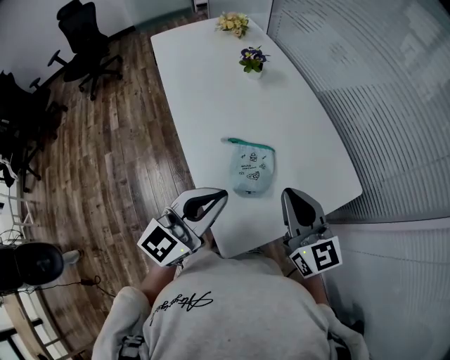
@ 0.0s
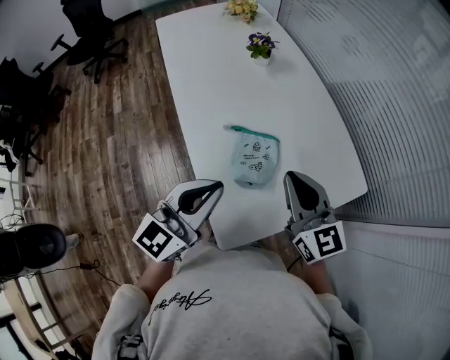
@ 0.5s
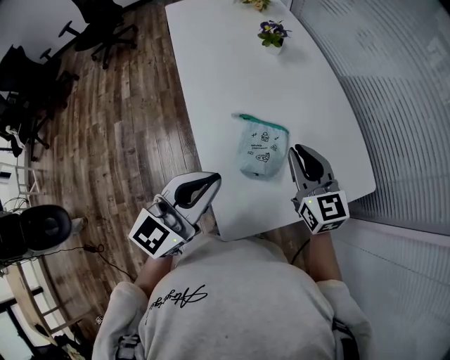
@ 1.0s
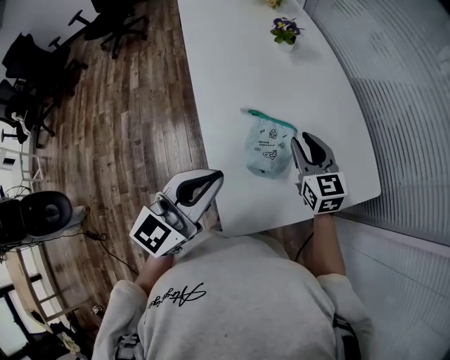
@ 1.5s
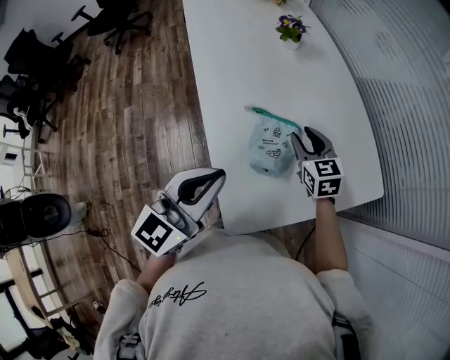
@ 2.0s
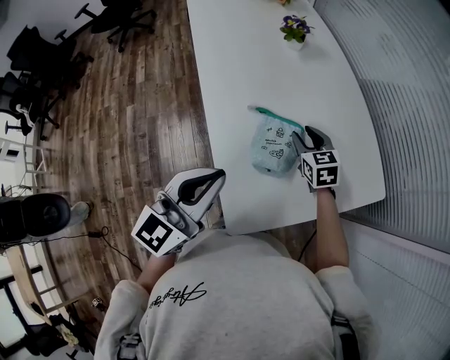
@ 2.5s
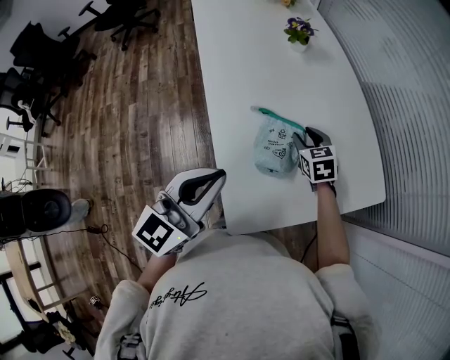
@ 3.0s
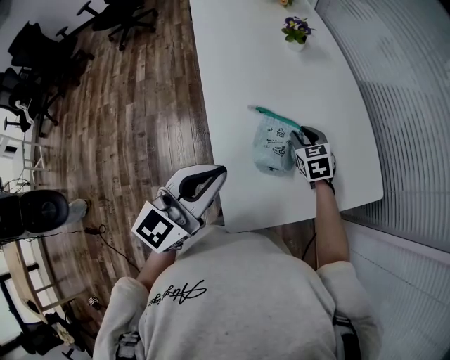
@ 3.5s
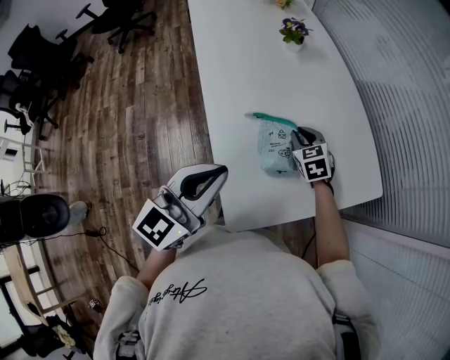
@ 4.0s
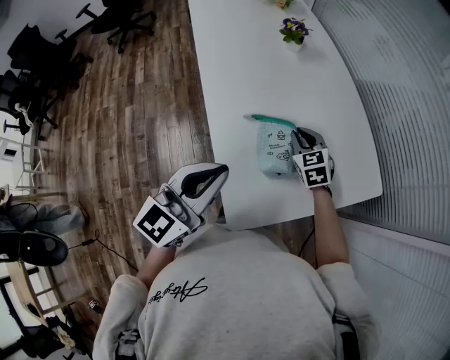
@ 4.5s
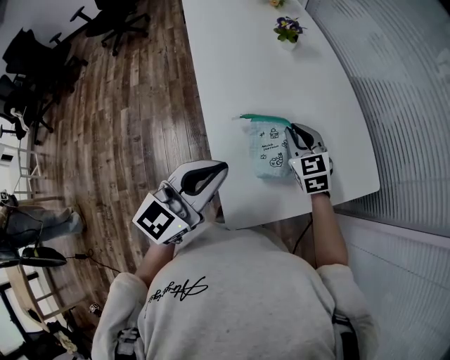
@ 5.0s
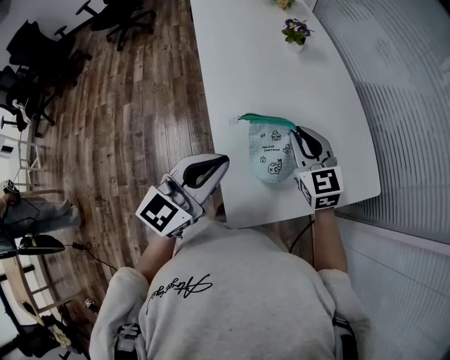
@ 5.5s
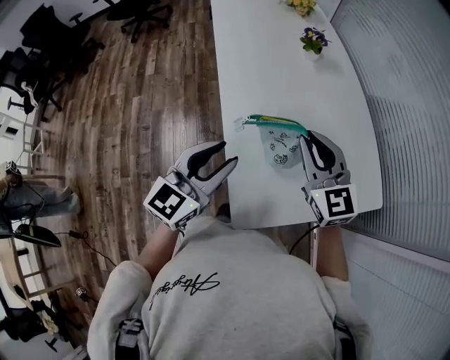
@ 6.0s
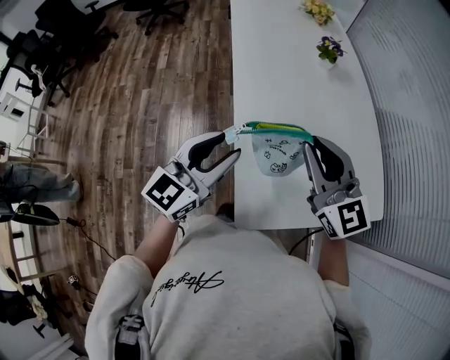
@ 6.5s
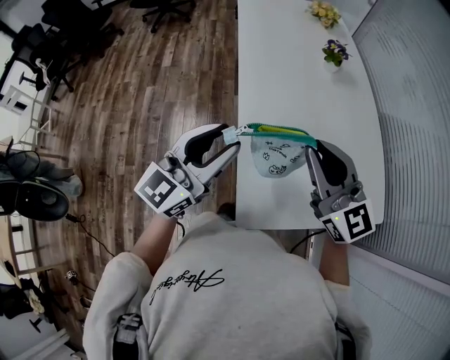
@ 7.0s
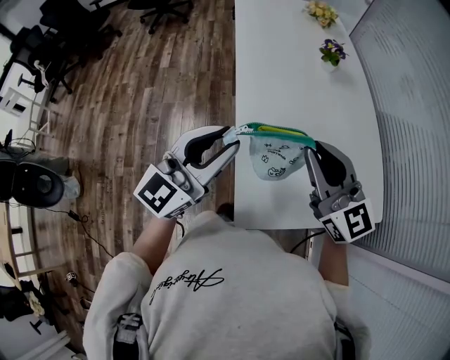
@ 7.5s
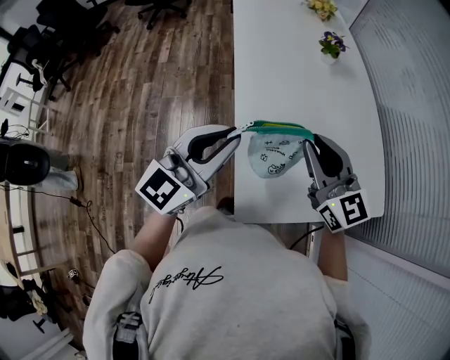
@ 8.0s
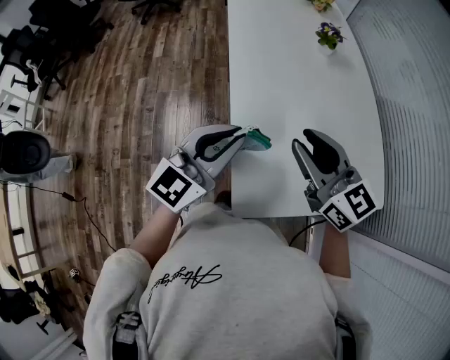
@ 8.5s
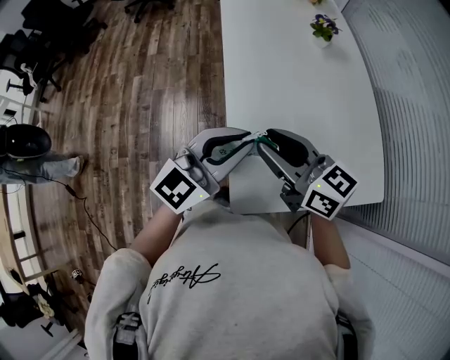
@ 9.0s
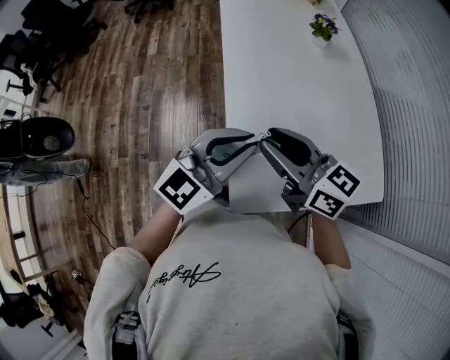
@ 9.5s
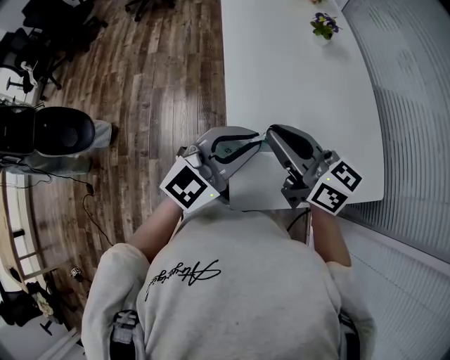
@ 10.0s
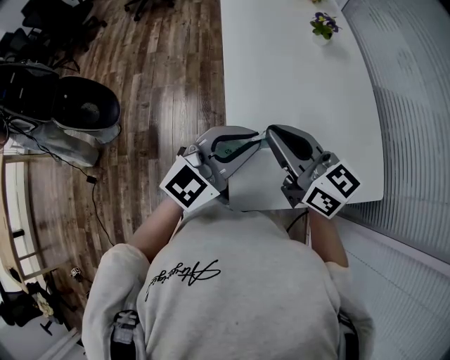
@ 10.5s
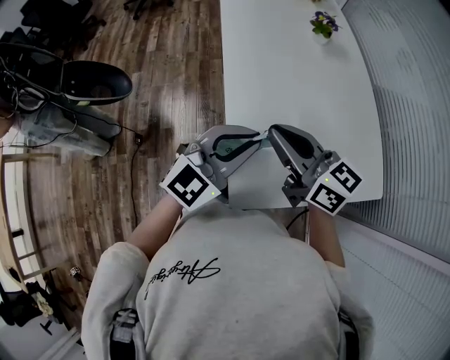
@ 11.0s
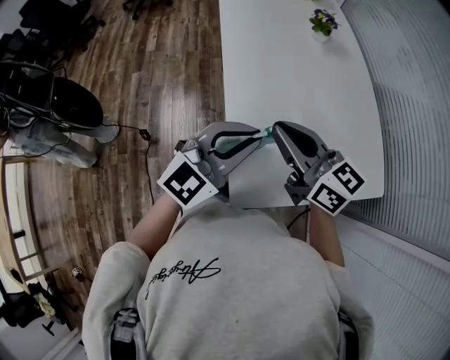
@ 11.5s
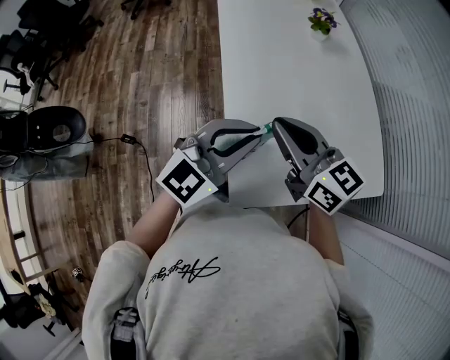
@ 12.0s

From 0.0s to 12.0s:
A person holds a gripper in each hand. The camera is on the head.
From 0.0s to 2.0s: The right gripper heads downward and forward, covering about 20 cm, turns by about 20 degrees, and opens.
From 2.0s to 4.0s: The right gripper shifts some 5 cm downward.
From 4.0s to 6.0s: The left gripper ends up approximately 5 cm from where it was, and opens its fingers. The right gripper goes approximately 20 cm upward and backward, and tilts its fingers some 30 degrees upward.
From 6.0s to 8.0s: The left gripper shifts roughly 5 cm upward, and closes its fingers.
From 8.0s to 10.0s: The right gripper goes roughly 5 cm to the left, and swivels roughly 30 degrees; the left gripper heads to the right, covering some 5 cm.
From 10.0s to 12.0s: The grippers make only small movements.

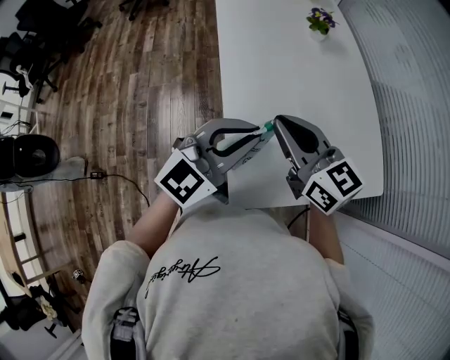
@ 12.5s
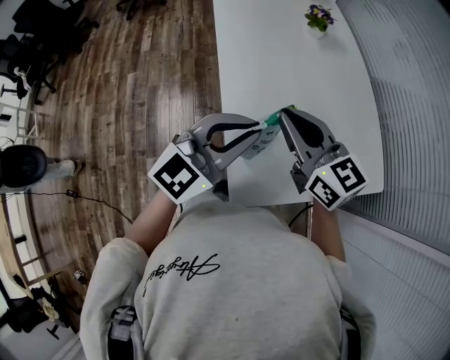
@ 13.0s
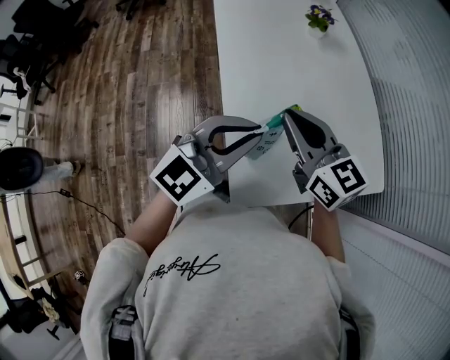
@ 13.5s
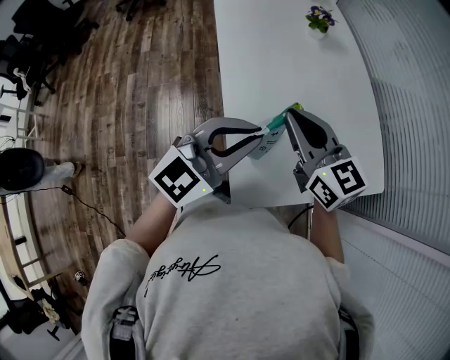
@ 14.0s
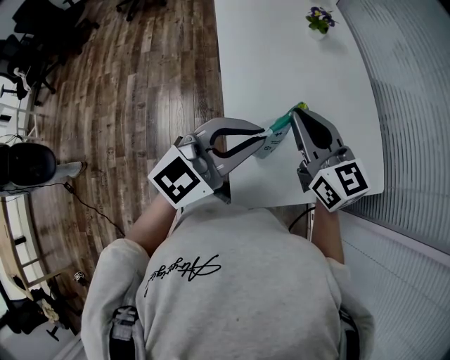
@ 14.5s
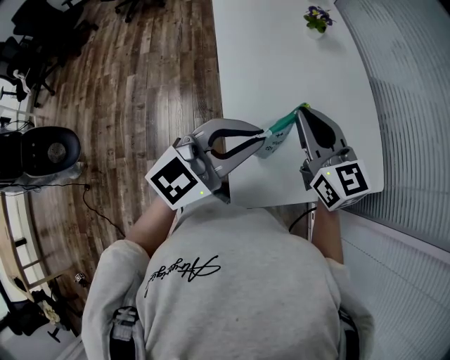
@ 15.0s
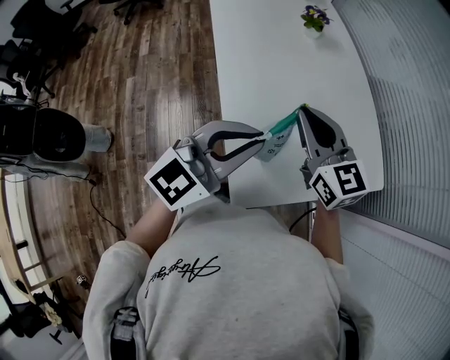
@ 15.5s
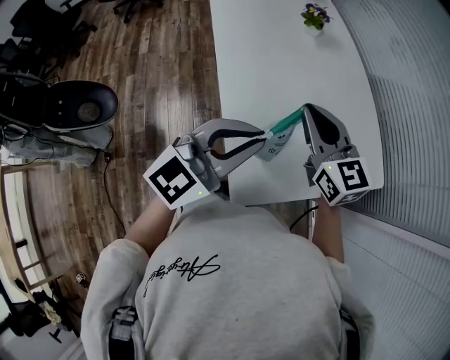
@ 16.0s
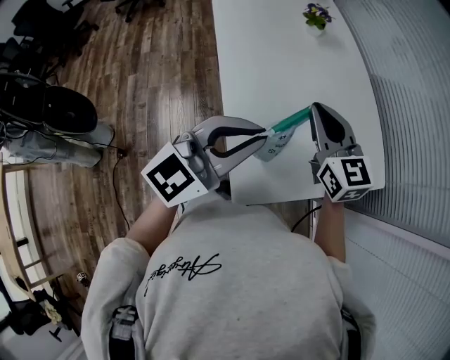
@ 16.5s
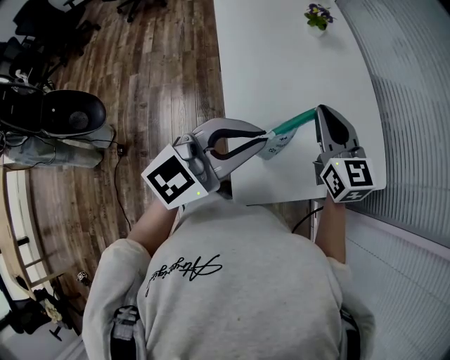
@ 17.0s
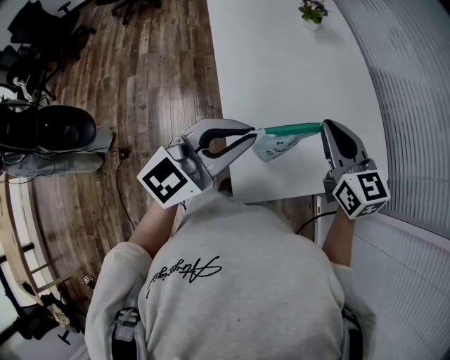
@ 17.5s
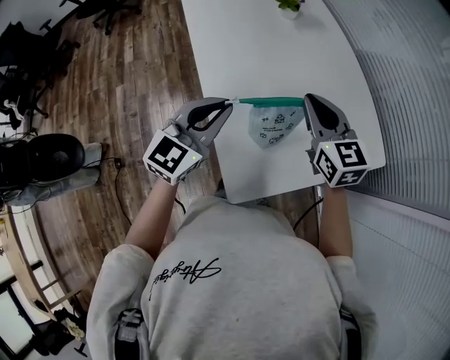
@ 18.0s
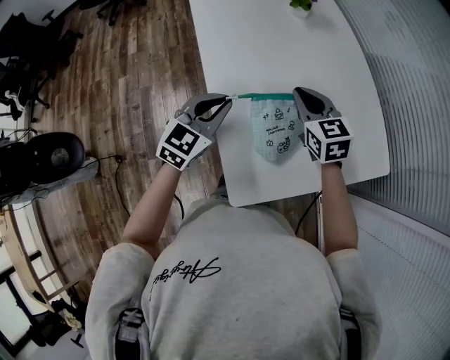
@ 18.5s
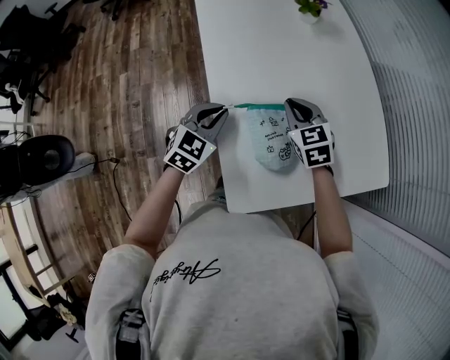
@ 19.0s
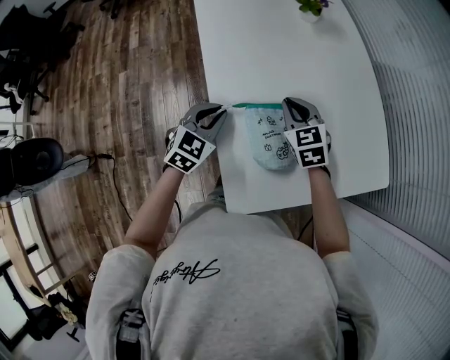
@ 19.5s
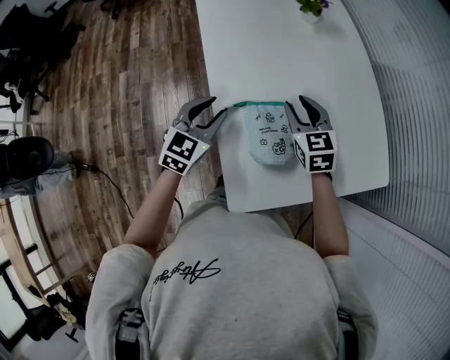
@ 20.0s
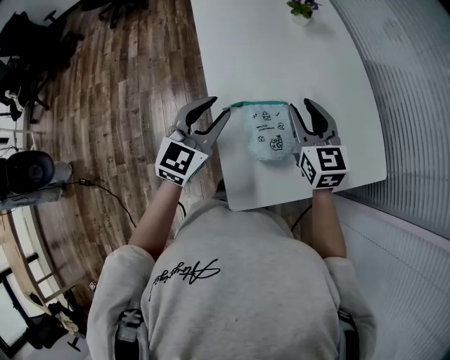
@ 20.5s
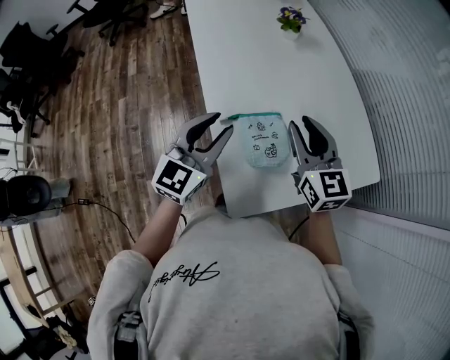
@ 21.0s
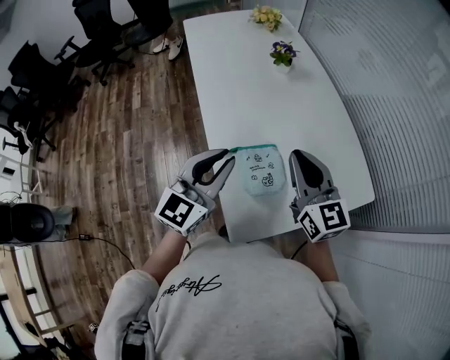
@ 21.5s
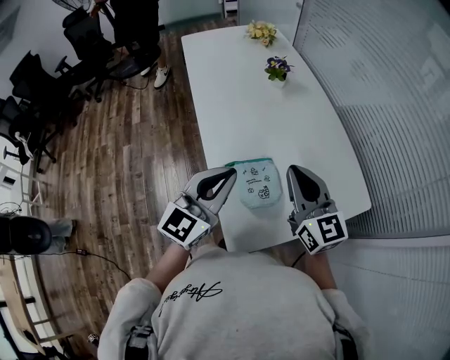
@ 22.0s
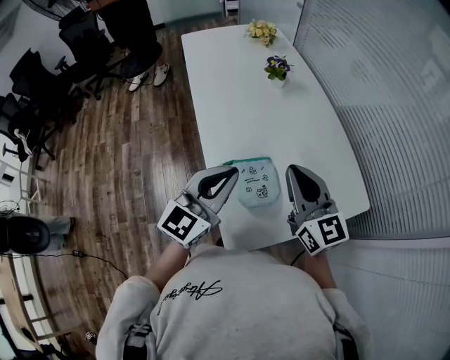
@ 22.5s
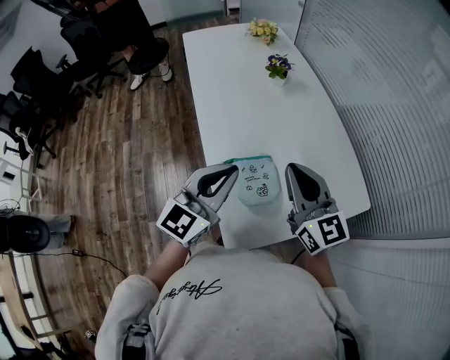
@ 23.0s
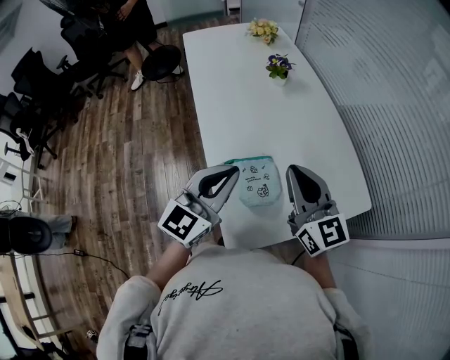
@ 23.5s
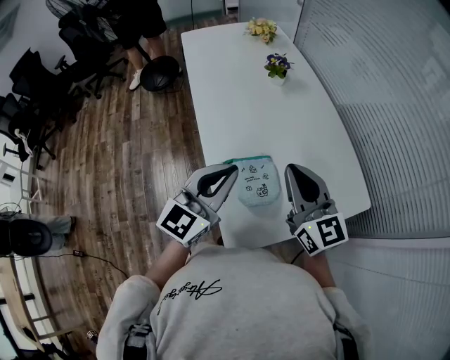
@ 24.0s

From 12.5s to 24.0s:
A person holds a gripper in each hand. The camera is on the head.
From 12.5s to 14.5s: The grippers stay close to where they were, moving slightly.
From 14.5s to 16.5s: The right gripper changes place by roughly 5 cm.
From 16.5s to 18.5s: Both grippers travel together downward and forward, roughly 15 cm. The left gripper swivels about 30 degrees.
From 18.5s to 20.0s: The left gripper moves about 5 cm, and opens up. The right gripper opens.
From 20.0s to 22.0s: Both grippers travel together upward and backward, about 20 cm. The right gripper changes its angle by about 30 degrees, and closes. Meanwhile the left gripper turns by roughly 30 degrees, and closes.
From 22.0s to 24.0s: The two grippers keep their place.

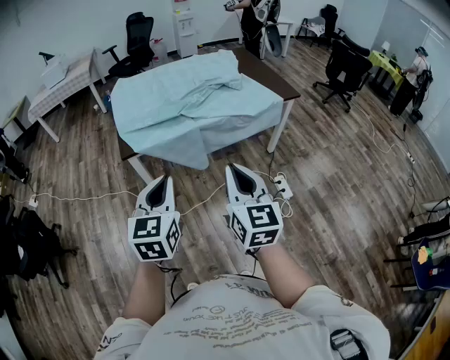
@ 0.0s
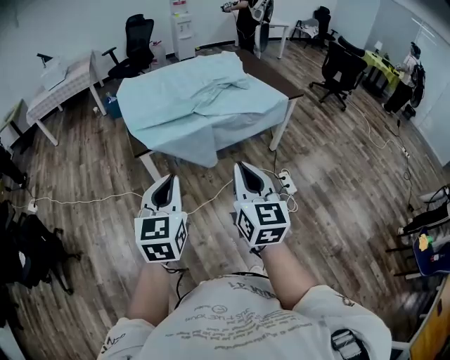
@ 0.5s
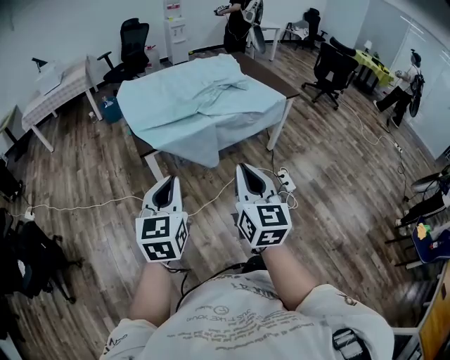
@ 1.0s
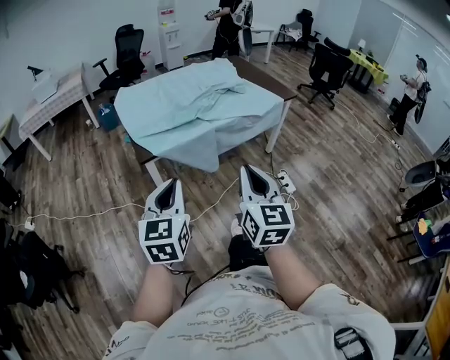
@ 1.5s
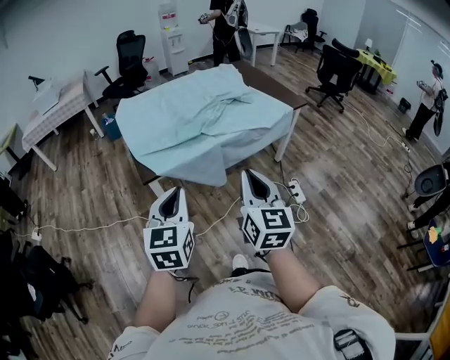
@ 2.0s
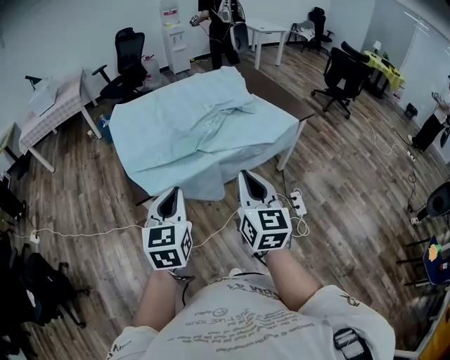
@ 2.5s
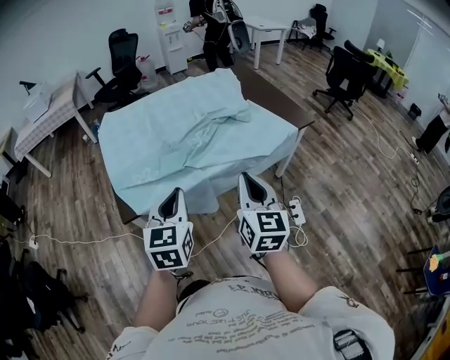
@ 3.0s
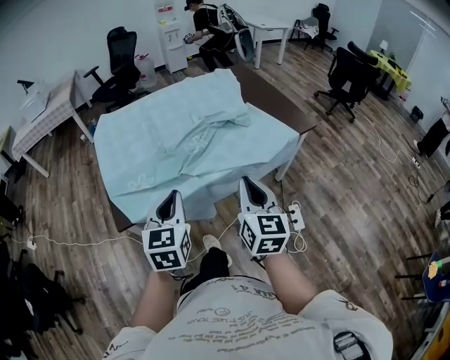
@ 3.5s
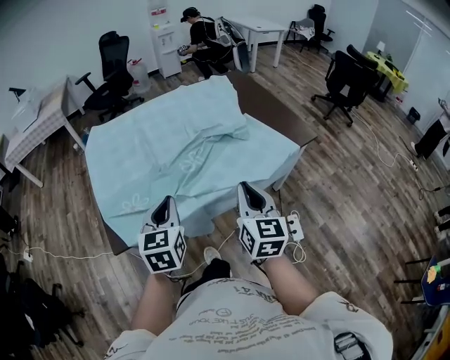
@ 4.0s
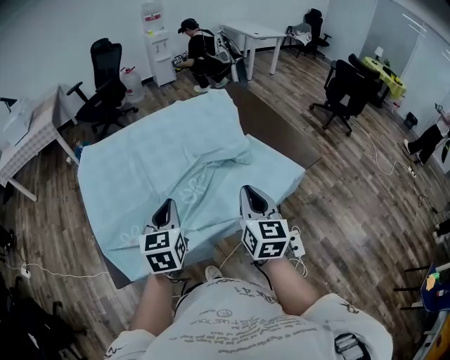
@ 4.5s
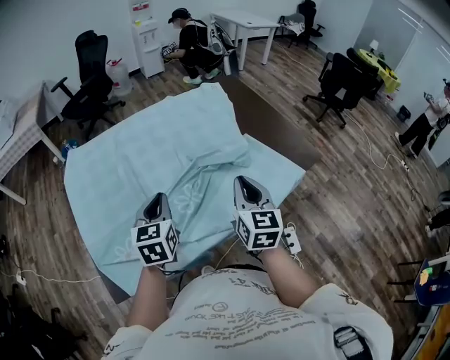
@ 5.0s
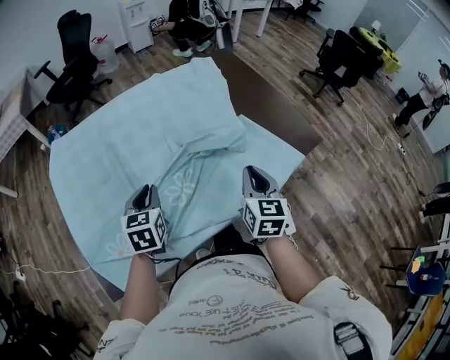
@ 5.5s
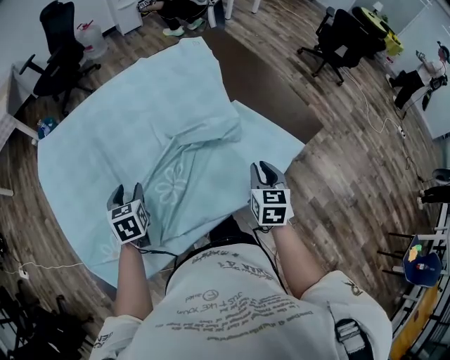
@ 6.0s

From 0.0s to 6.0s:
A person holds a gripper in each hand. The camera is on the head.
From 0.0s to 2.0s: Both grippers travel together to the left, about 15 cm.
From 2.0s to 4.0s: The two grippers go some 35 cm forward.
From 4.0s to 6.0s: The right gripper heads forward, downward and to the right, covering approximately 35 cm, and rotates roughly 30 degrees. Meanwhile the left gripper shifts some 35 cm forward and downward, turns by some 20 degrees, and opens.
